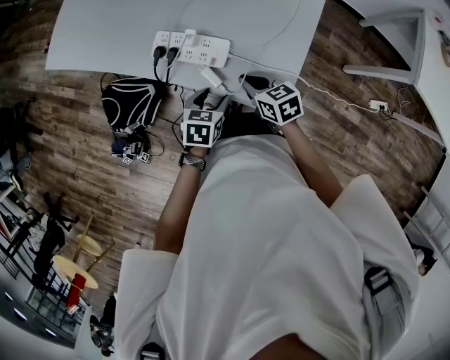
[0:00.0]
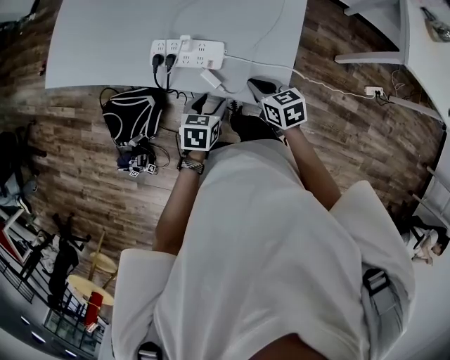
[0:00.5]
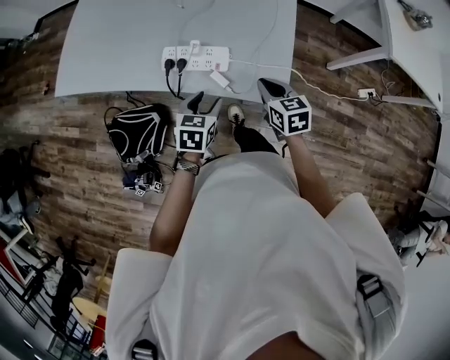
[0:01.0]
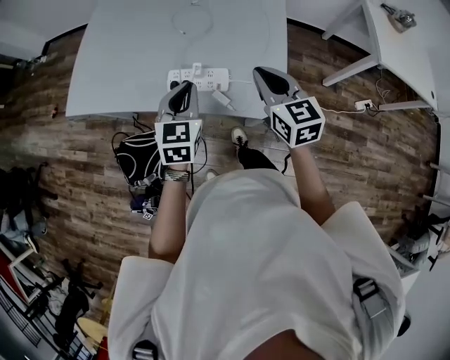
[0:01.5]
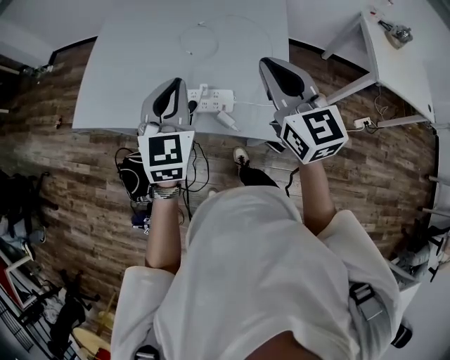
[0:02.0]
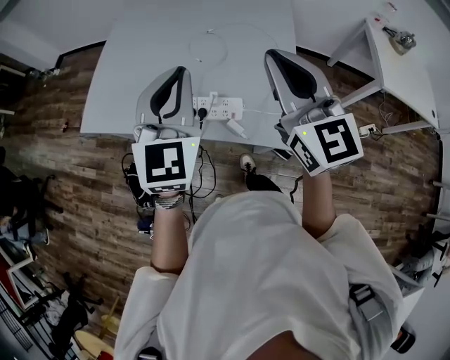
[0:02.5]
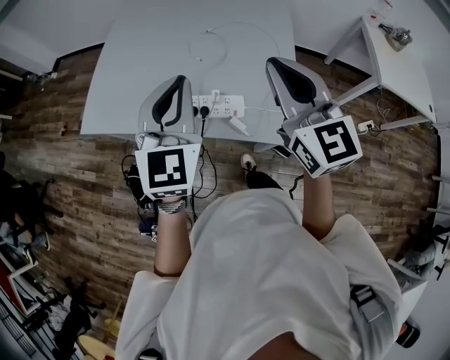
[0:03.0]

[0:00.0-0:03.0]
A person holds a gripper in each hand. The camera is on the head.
0:00.0 to 0:01.5: The grippers both shift upward by about 25 cm. The right gripper changes its angle by approximately 40 degrees, while the left gripper turns by roughly 40 degrees, and closes.
0:01.5 to 0:03.0: The grippers both shift upward by about 20 cm. The right gripper swivels roughly 20 degrees, while the left gripper swivels roughly 20 degrees.

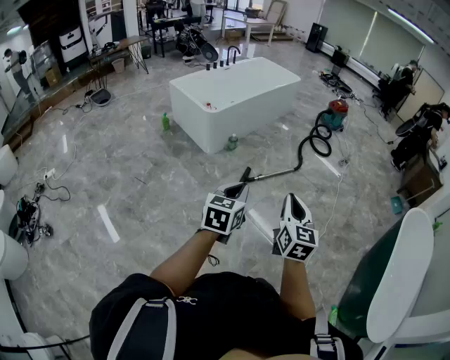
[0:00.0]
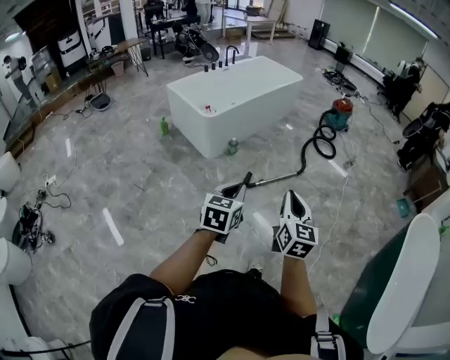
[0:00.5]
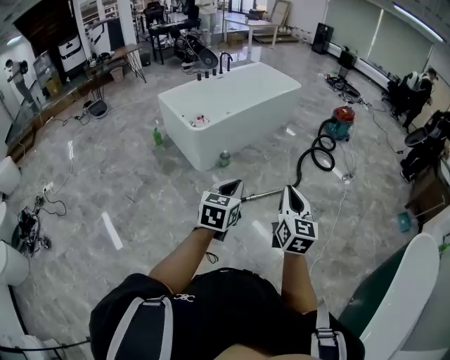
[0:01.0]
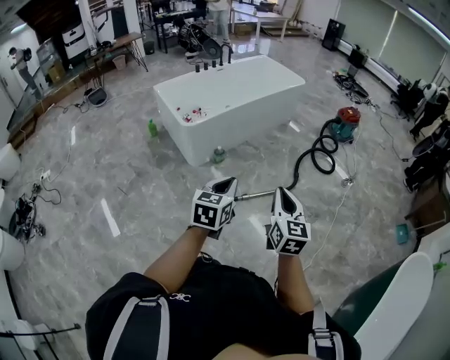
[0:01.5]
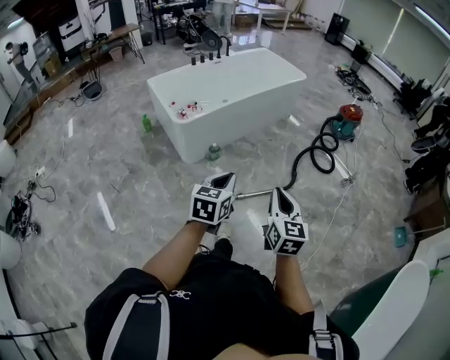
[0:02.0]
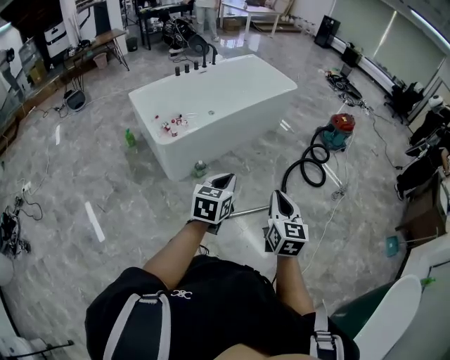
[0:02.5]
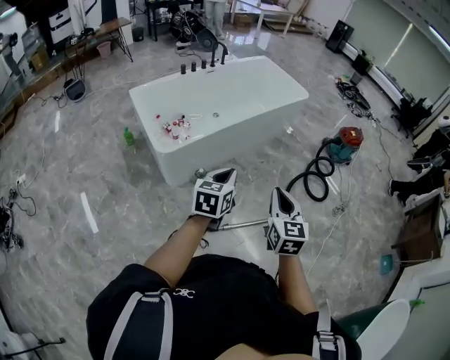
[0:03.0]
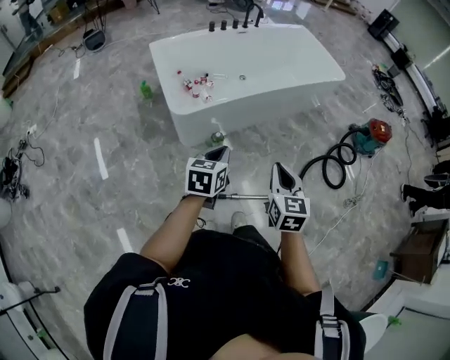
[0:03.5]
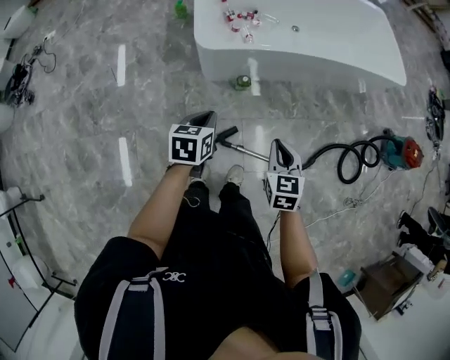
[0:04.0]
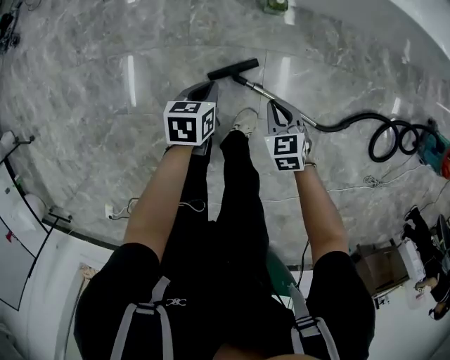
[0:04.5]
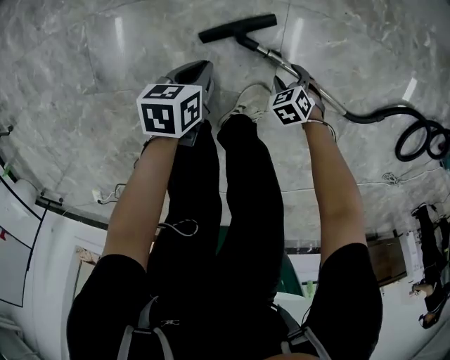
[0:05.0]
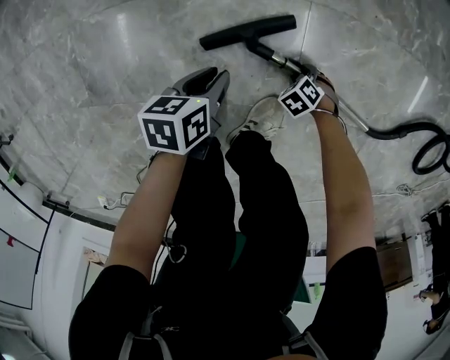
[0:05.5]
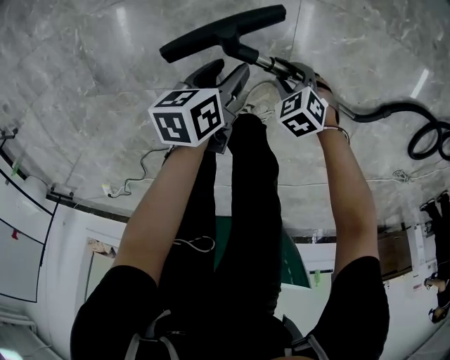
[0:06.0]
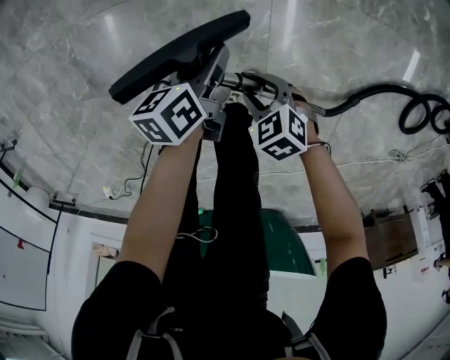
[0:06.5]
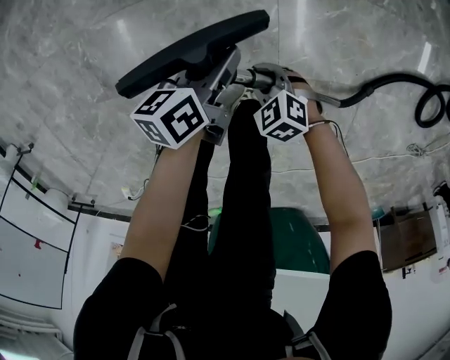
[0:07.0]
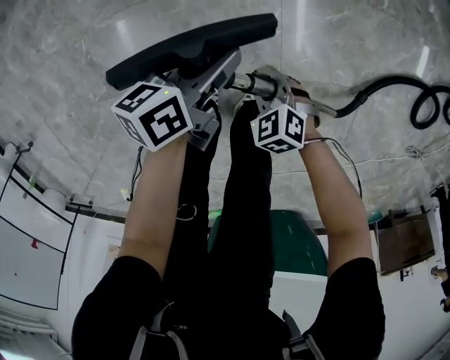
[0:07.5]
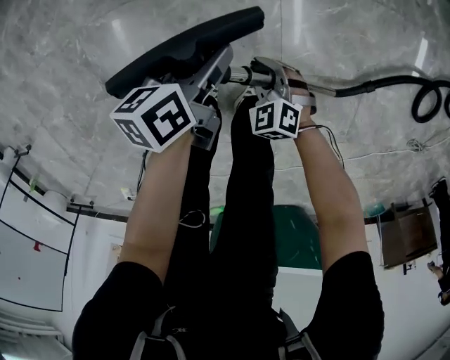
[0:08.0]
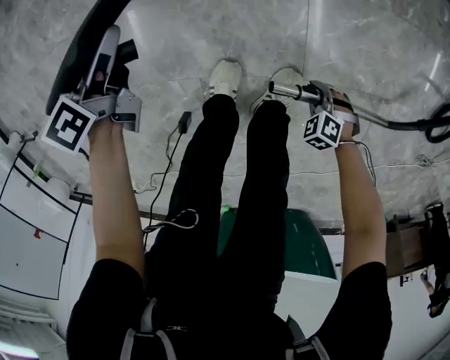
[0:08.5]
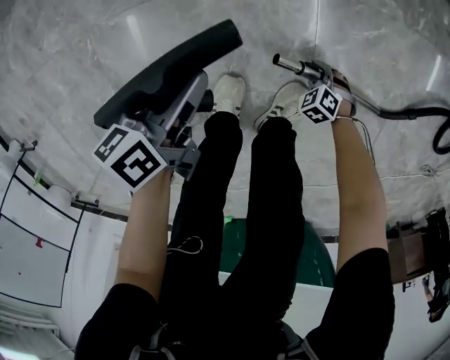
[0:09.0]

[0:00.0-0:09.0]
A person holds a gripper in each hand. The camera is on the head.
0:00.0 to 0:02.0: The pair of grippers is taken forward, roughly 50 cm.
0:02.0 to 0:04.5: The grippers both shift downward by approximately 50 cm. The left gripper angles its fingers downward, by roughly 30 degrees; the right gripper tips its fingers downward by approximately 40 degrees.
0:04.5 to 0:07.0: Both grippers move downward, some 25 cm. The left gripper rotates some 30 degrees, and opens, while the right gripper swivels some 30 degrees, and opens and closes again.
0:07.0 to 0:09.0: The right gripper heads downward, covering roughly 20 cm, and turns by approximately 20 degrees.

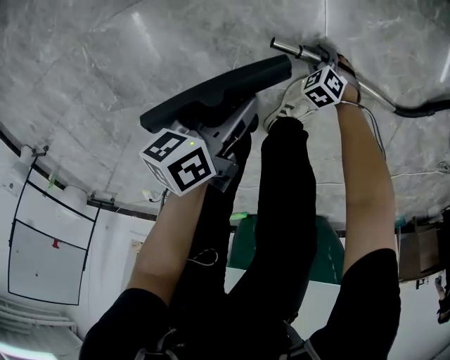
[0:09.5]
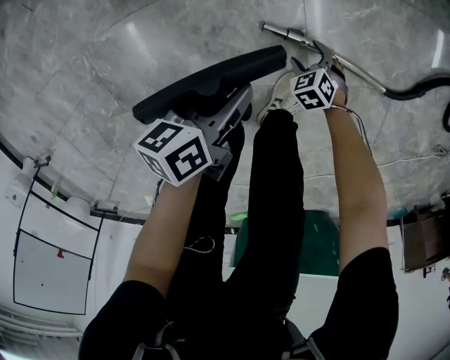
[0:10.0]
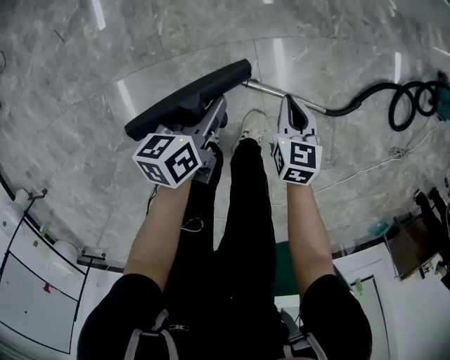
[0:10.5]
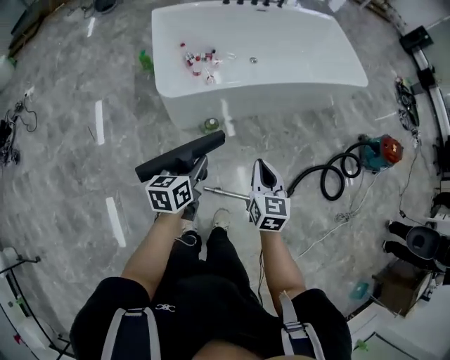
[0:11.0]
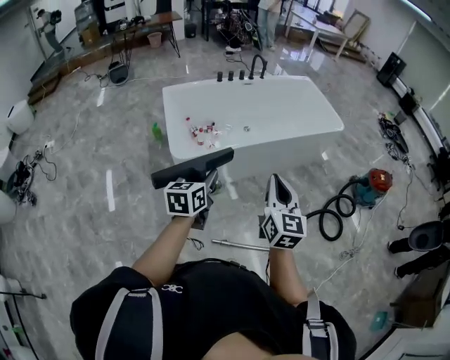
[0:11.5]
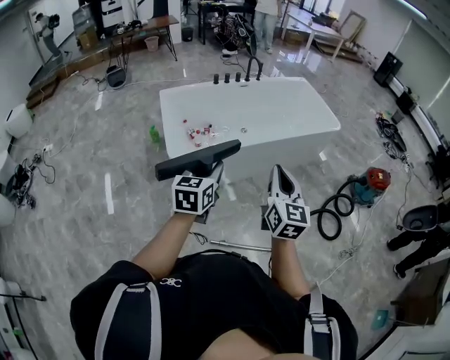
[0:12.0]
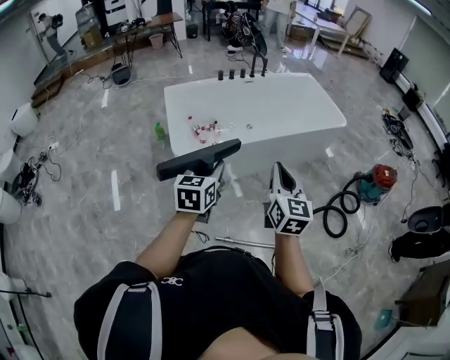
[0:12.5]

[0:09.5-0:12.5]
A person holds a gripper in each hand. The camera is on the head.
0:09.5 to 0:11.0: The grippers both shift upward by about 80 cm. The right gripper tips its fingers upward by approximately 60 degrees, and closes. The left gripper rotates approximately 40 degrees.
0:11.0 to 0:12.5: Both grippers move upward, approximately 25 cm. The right gripper changes its angle by about 20 degrees, while the left gripper changes its angle by about 30 degrees.

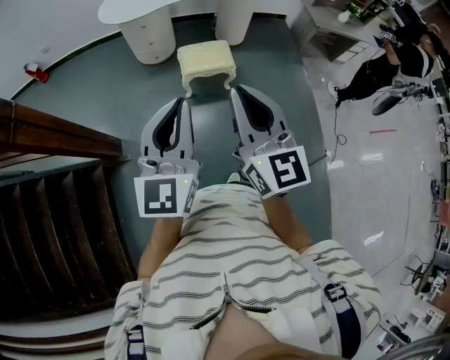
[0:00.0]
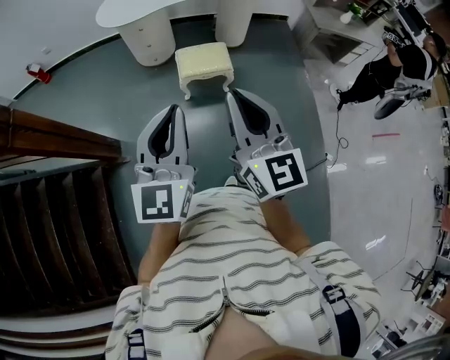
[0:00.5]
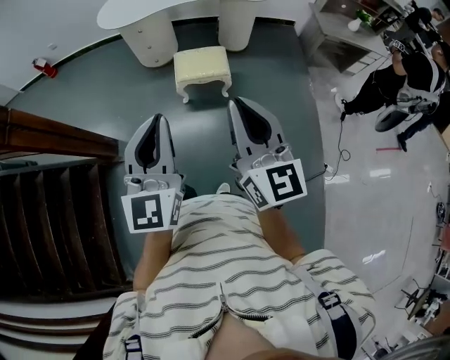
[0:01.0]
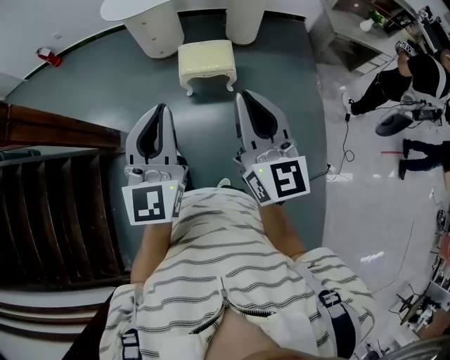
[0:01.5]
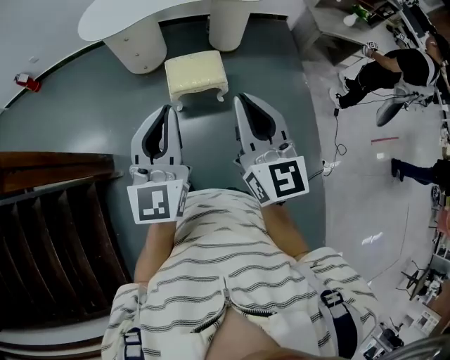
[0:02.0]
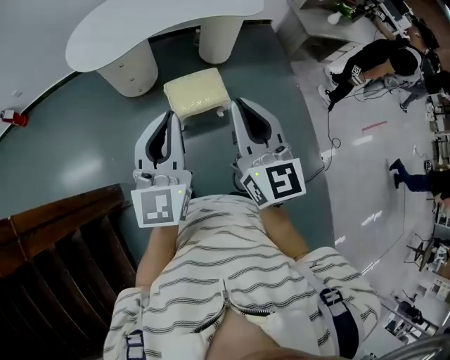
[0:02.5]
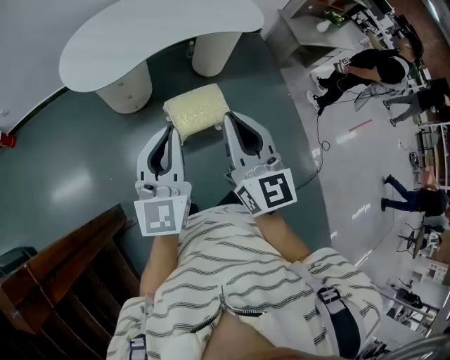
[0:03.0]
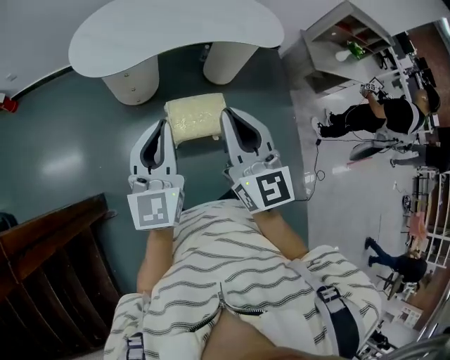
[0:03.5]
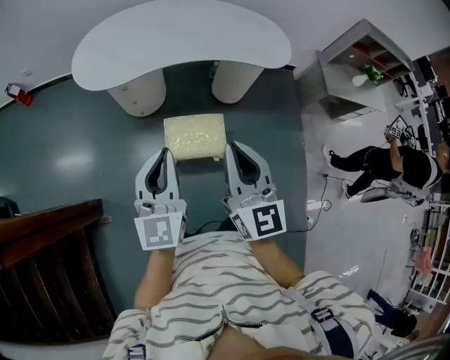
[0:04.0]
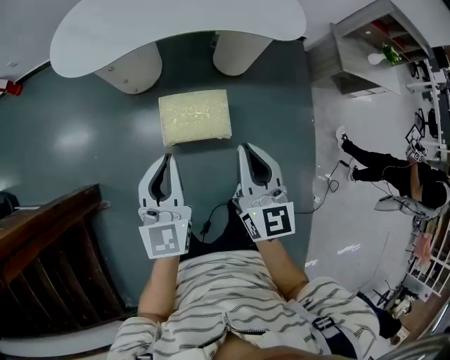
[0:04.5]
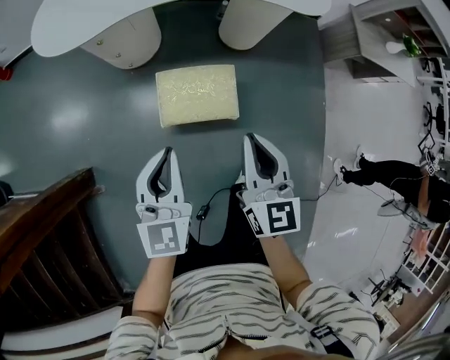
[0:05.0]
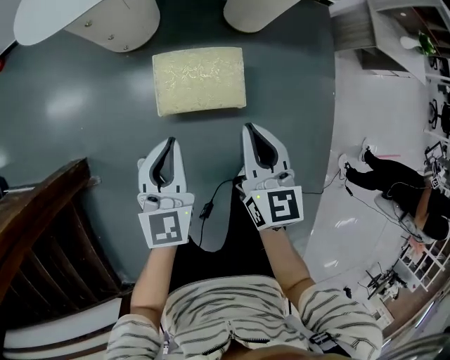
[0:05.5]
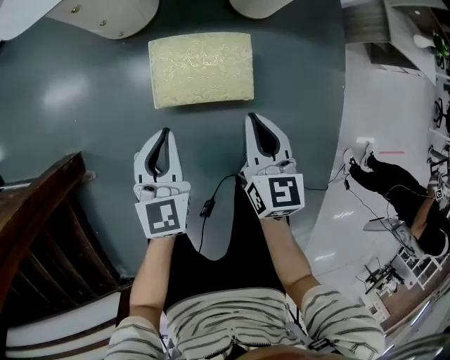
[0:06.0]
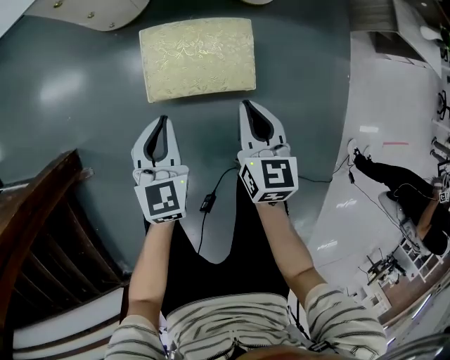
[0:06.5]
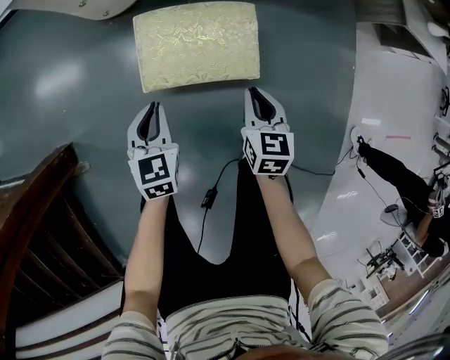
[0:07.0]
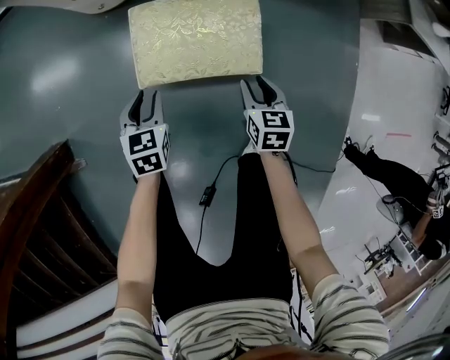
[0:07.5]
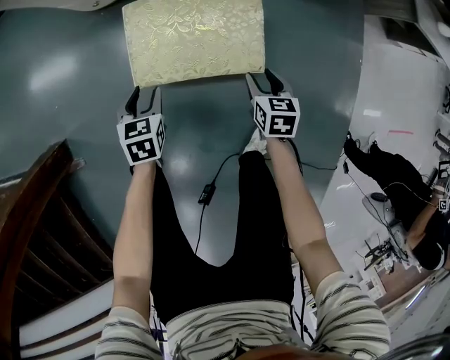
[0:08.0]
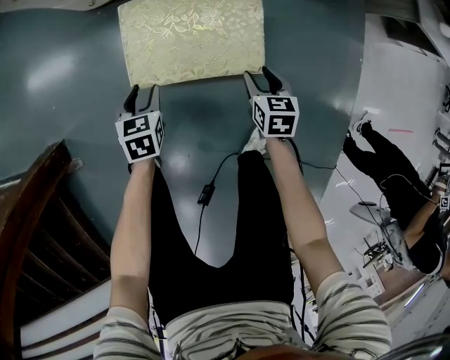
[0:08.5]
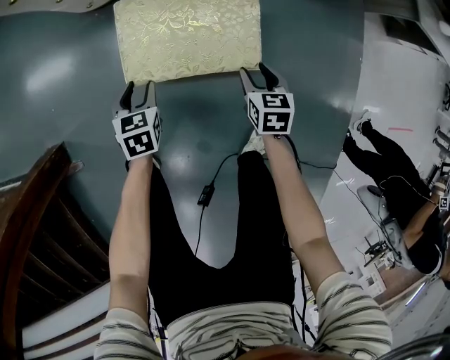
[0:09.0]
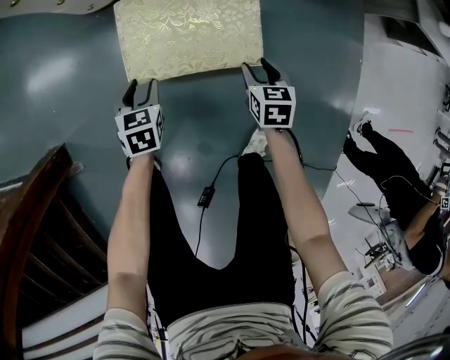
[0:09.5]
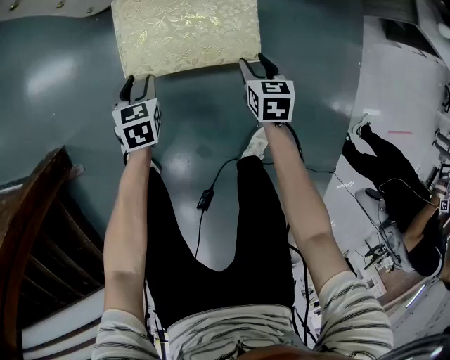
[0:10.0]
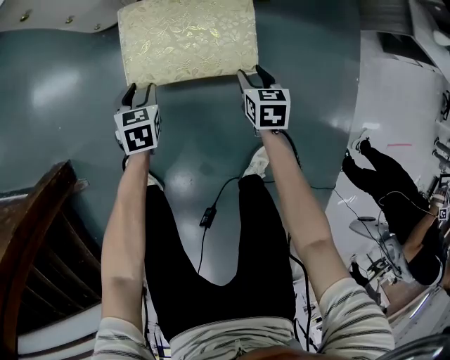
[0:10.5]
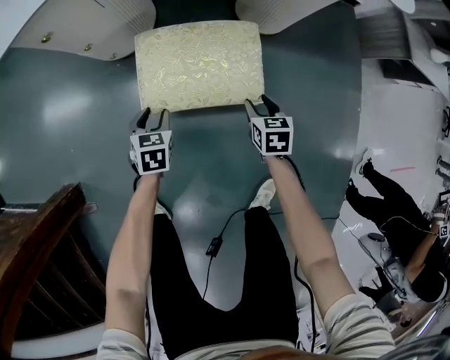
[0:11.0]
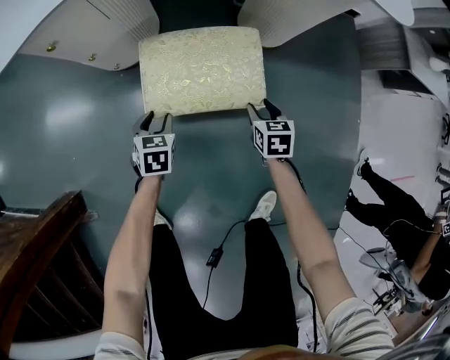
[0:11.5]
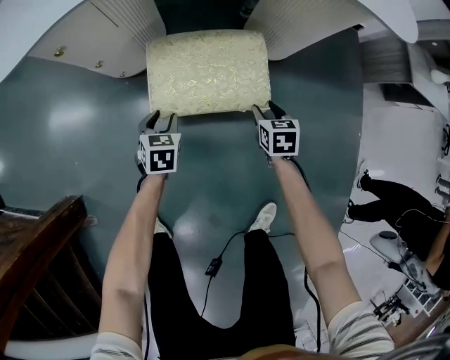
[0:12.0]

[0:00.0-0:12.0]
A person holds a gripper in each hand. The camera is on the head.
0:00.0 to 0:02.0: Both grippers move forward and to the right, some 20 cm.
0:02.0 to 0:04.0: Both grippers travel together forward, about 30 cm.
0:04.0 to 0:06.0: The grippers both shift downward by approximately 40 cm. The right gripper turns by approximately 30 degrees. Meanwhile the left gripper rotates approximately 30 degrees.
0:06.0 to 0:08.0: The two grippers go roughly 30 cm downward. The left gripper swivels approximately 30 degrees, and opens its fingers. The right gripper changes its angle by some 30 degrees, and opens its fingers.
0:08.0 to 0:12.0: The grippers make only small movements.
